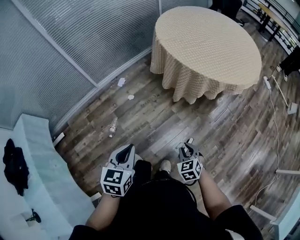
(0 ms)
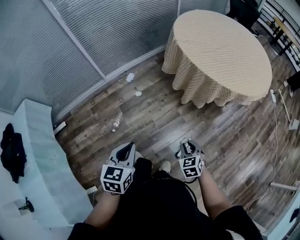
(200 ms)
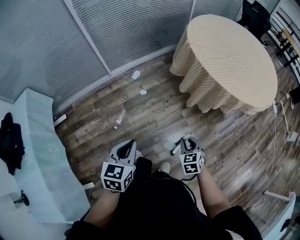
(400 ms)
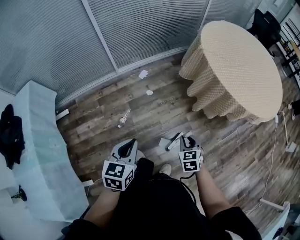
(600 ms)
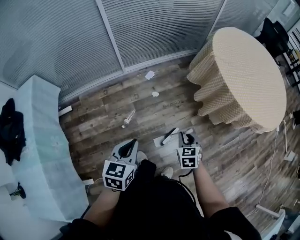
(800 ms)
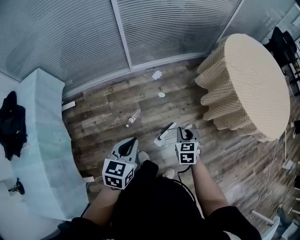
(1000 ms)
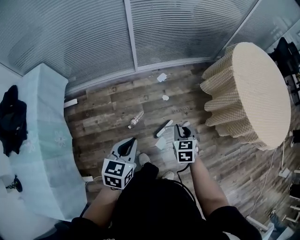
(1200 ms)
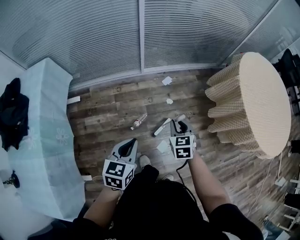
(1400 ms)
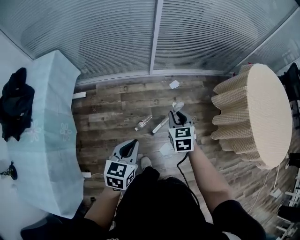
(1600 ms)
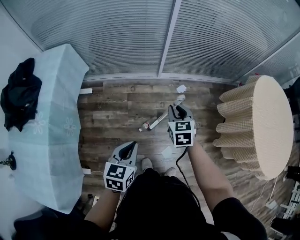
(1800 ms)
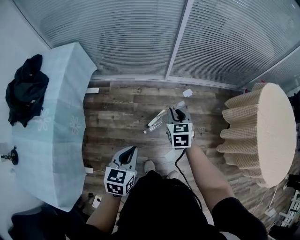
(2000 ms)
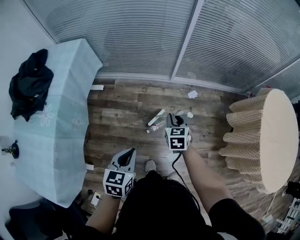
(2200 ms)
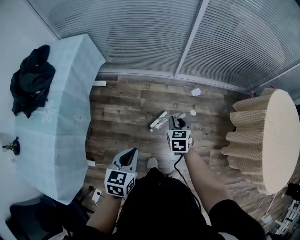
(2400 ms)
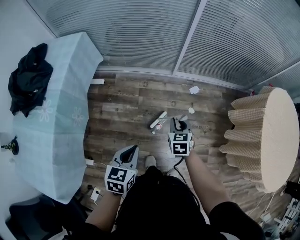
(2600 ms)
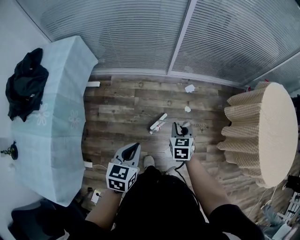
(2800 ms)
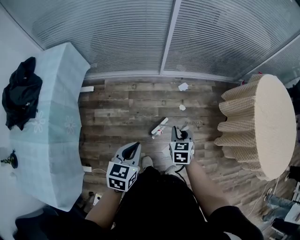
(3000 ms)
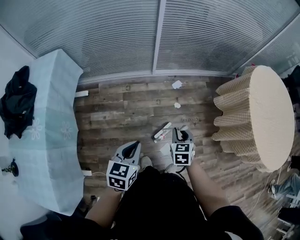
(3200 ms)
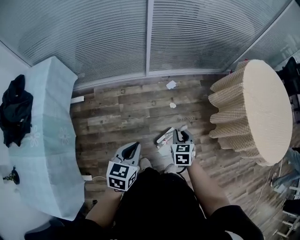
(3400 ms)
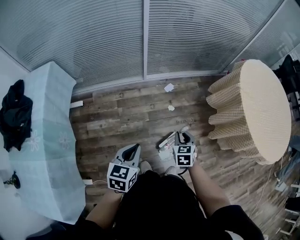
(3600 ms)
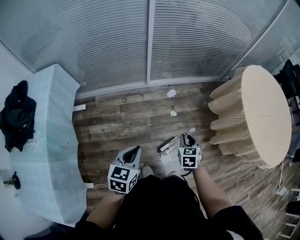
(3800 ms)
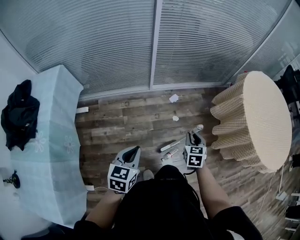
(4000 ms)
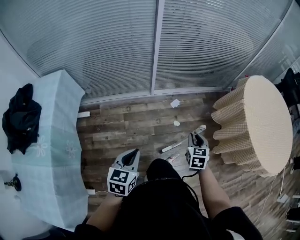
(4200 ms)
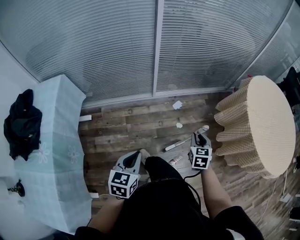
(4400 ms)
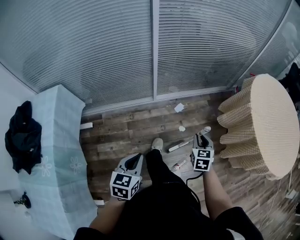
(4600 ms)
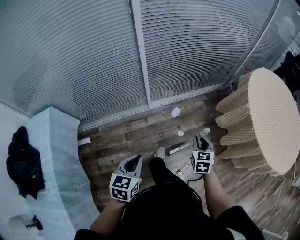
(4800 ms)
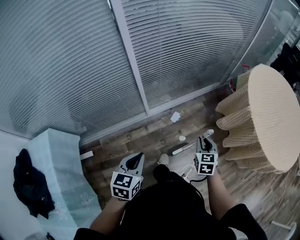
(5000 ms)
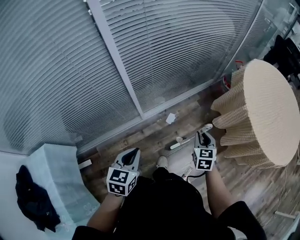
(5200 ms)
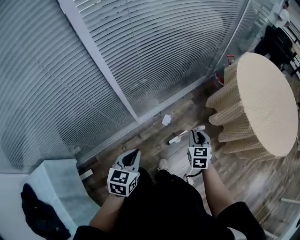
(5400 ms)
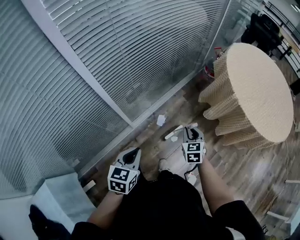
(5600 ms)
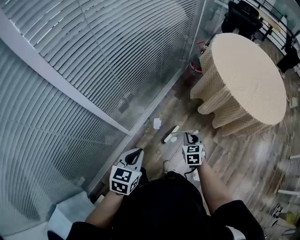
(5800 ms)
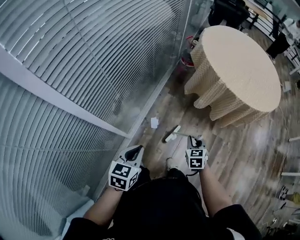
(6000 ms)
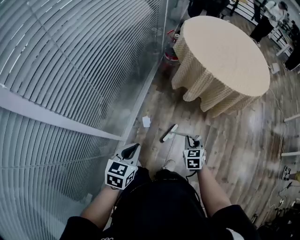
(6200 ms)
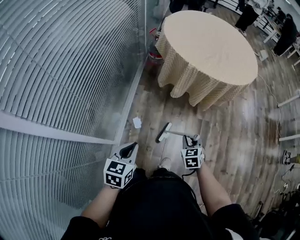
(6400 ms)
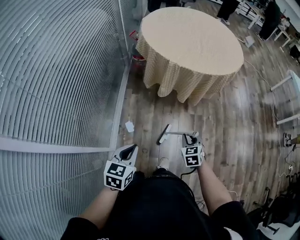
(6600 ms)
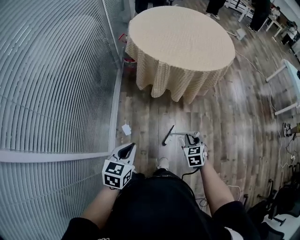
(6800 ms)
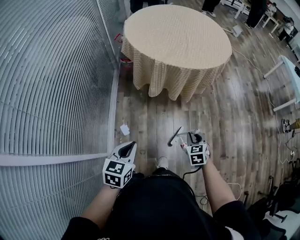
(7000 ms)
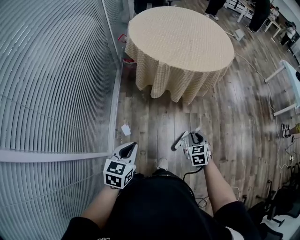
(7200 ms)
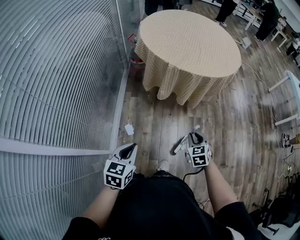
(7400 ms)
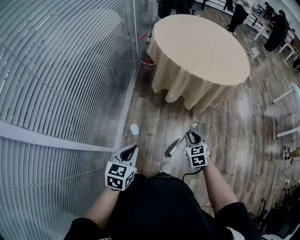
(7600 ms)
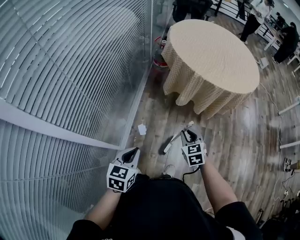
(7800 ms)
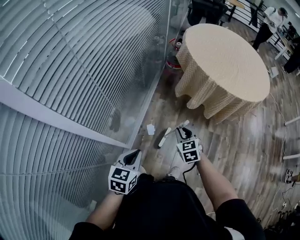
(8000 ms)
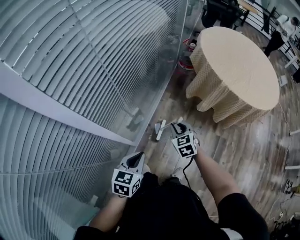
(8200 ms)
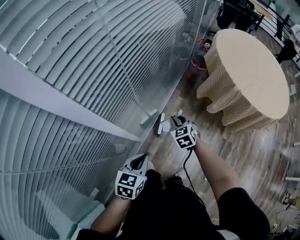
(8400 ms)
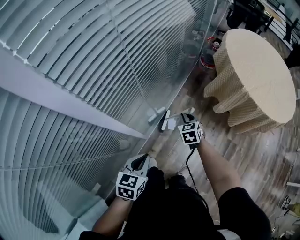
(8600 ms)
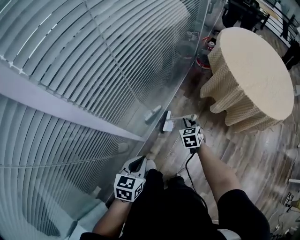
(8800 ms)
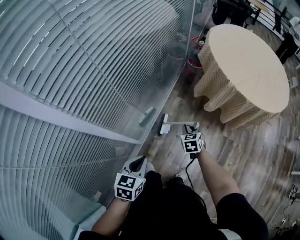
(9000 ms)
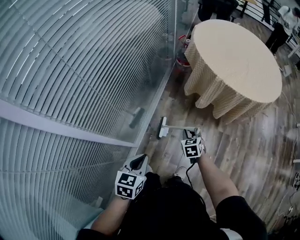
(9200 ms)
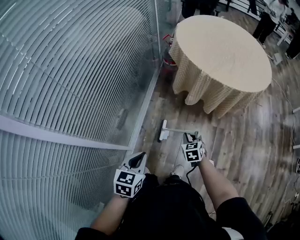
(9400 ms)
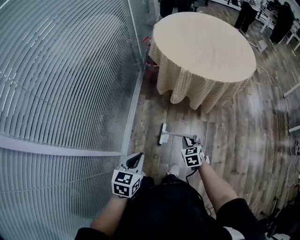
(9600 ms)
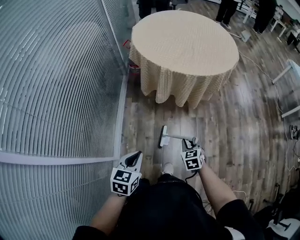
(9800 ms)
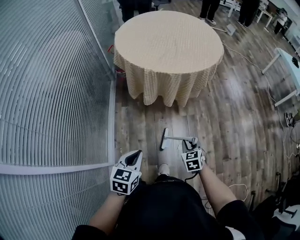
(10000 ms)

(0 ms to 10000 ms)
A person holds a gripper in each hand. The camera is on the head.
0 ms - 1400 ms: The left gripper moves to the left, about 35 cm, and swivels about 30 degrees; the right gripper is displaced to the left and forward by some 50 cm.
1400 ms - 2800 ms: The two grippers go some 10 cm to the left.
2800 ms - 4200 ms: The right gripper moves to the right, approximately 15 cm. Meanwhile the left gripper travels to the right and back again, approximately 10 cm each way.
4200 ms - 5800 ms: The left gripper moves approximately 50 cm, and turns by some 50 degrees. The right gripper shifts by some 30 cm, and changes its angle by some 40 degrees.
5800 ms - 7200 ms: The right gripper shifts by approximately 25 cm, and rotates some 30 degrees, while the left gripper changes place by roughly 15 cm, and rotates some 30 degrees.
7200 ms - 8600 ms: The left gripper shifts by about 25 cm, and swivels about 30 degrees. The right gripper changes place by roughly 50 cm, and swivels approximately 40 degrees.
8600 ms - 10000 ms: The right gripper ends up some 50 cm from where it was, and changes its angle by approximately 40 degrees, while the left gripper changes place by about 35 cm, and changes its angle by roughly 40 degrees.

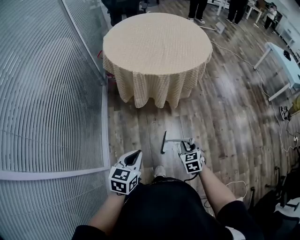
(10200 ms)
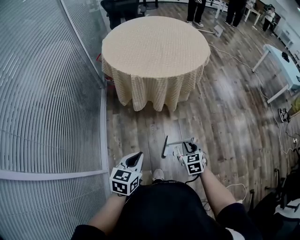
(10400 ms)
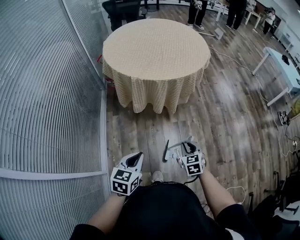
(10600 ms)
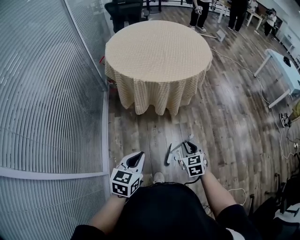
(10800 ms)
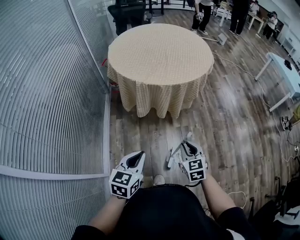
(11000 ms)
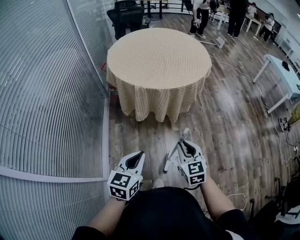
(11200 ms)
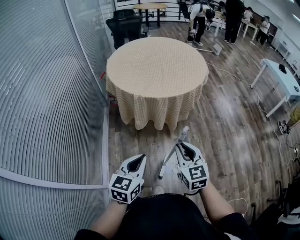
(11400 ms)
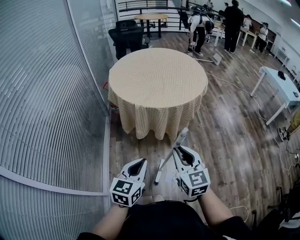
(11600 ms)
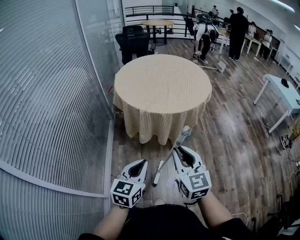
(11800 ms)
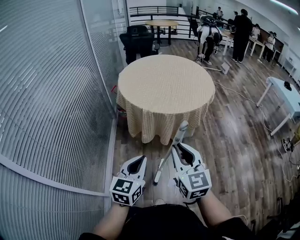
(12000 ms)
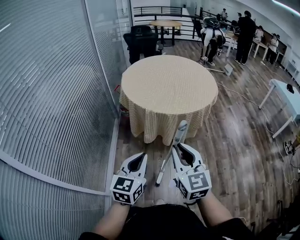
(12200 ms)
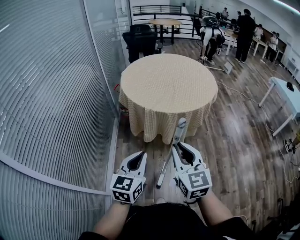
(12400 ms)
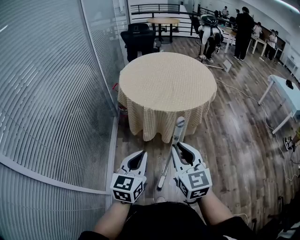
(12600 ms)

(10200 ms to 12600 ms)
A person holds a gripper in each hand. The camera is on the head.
10200 ms - 11400 ms: The left gripper heads upward, covering approximately 10 cm; the right gripper moves upward, approximately 20 cm, and turns by about 30 degrees.
11400 ms - 12600 ms: The right gripper shifts about 15 cm upward and to the left; the left gripper shifts roughly 5 cm upward.

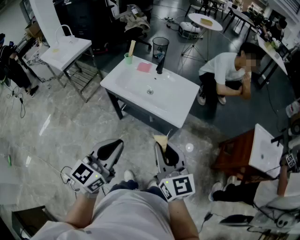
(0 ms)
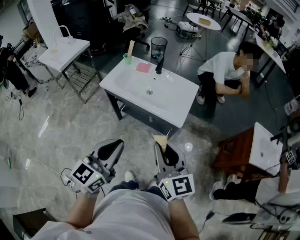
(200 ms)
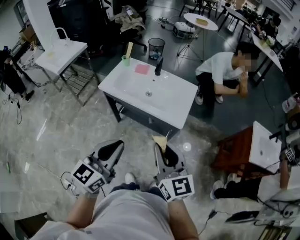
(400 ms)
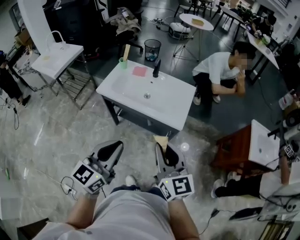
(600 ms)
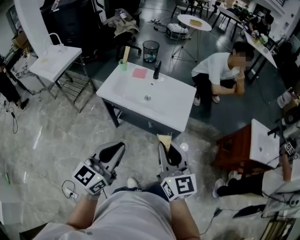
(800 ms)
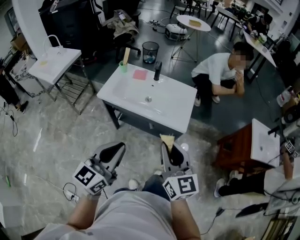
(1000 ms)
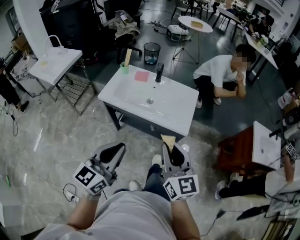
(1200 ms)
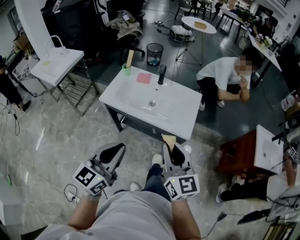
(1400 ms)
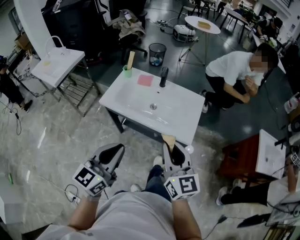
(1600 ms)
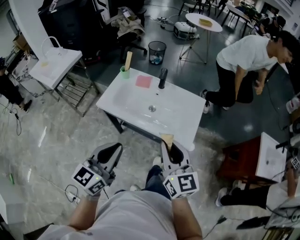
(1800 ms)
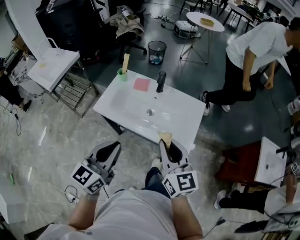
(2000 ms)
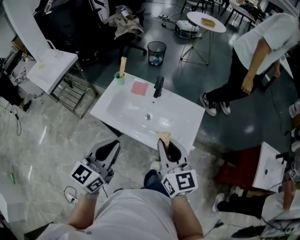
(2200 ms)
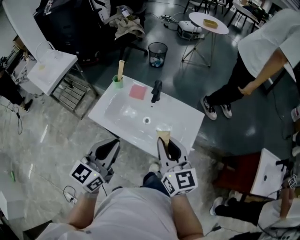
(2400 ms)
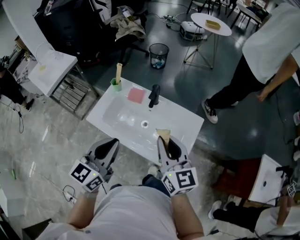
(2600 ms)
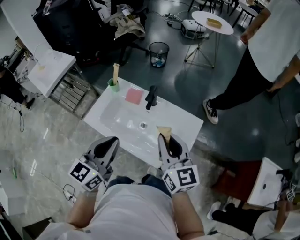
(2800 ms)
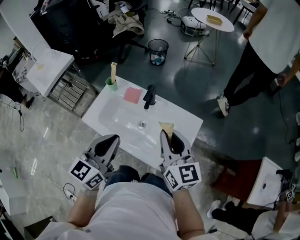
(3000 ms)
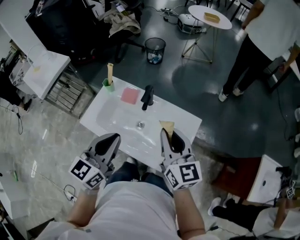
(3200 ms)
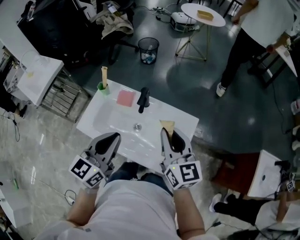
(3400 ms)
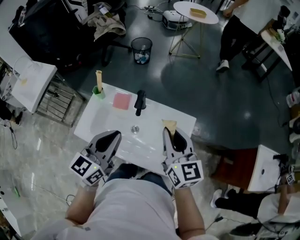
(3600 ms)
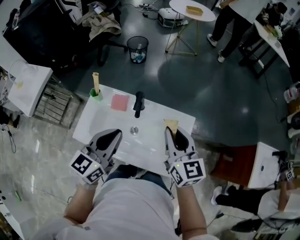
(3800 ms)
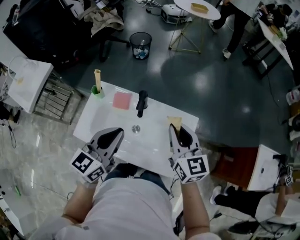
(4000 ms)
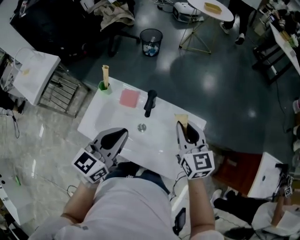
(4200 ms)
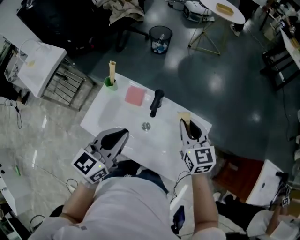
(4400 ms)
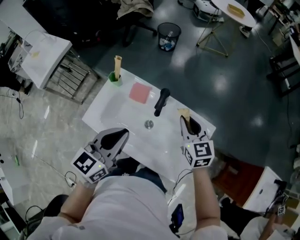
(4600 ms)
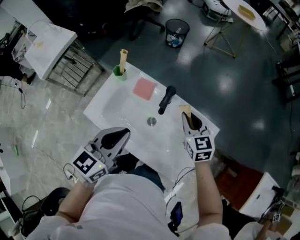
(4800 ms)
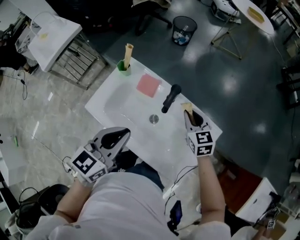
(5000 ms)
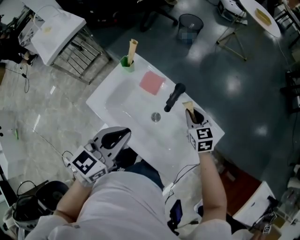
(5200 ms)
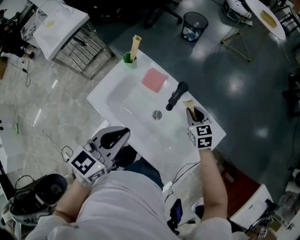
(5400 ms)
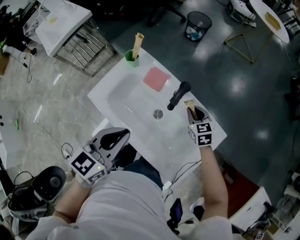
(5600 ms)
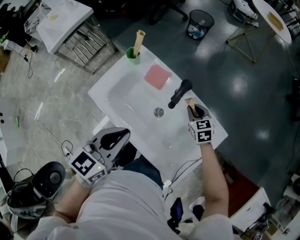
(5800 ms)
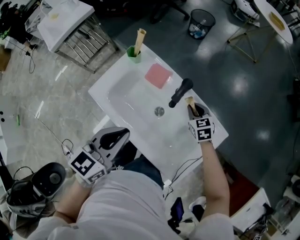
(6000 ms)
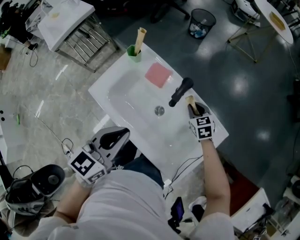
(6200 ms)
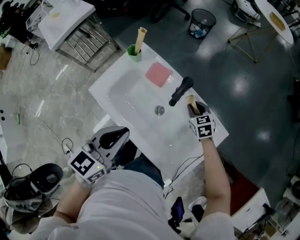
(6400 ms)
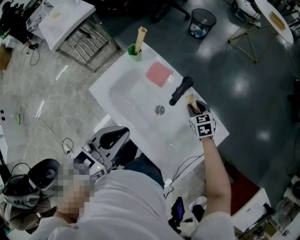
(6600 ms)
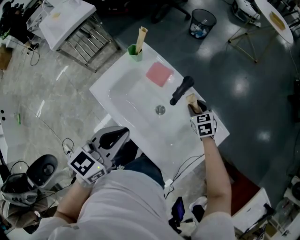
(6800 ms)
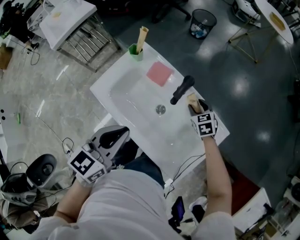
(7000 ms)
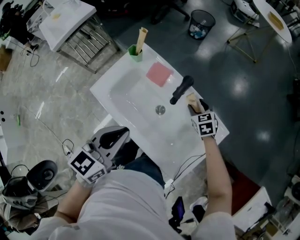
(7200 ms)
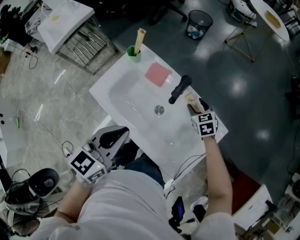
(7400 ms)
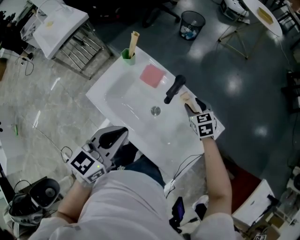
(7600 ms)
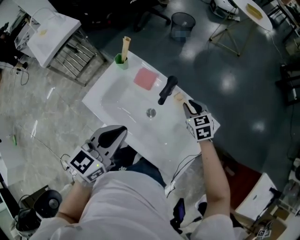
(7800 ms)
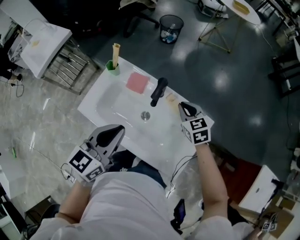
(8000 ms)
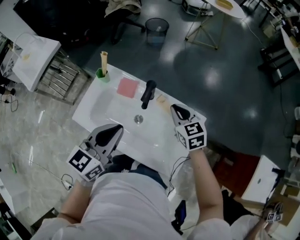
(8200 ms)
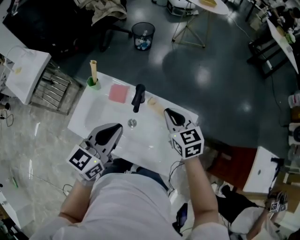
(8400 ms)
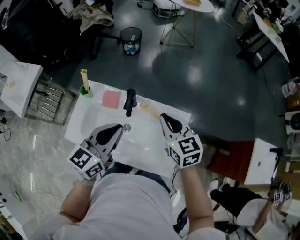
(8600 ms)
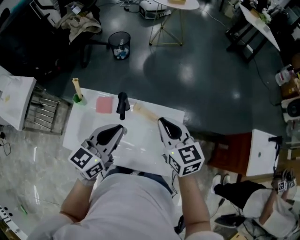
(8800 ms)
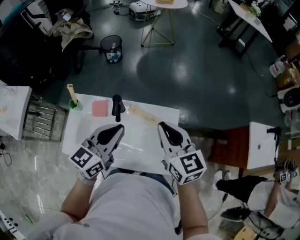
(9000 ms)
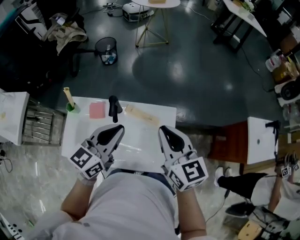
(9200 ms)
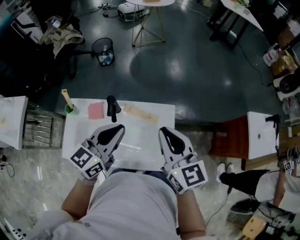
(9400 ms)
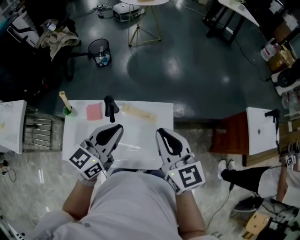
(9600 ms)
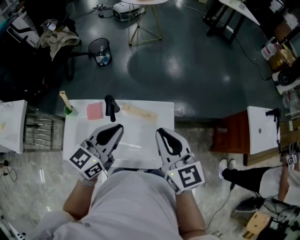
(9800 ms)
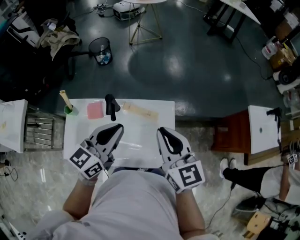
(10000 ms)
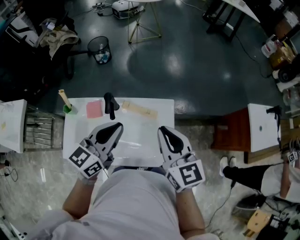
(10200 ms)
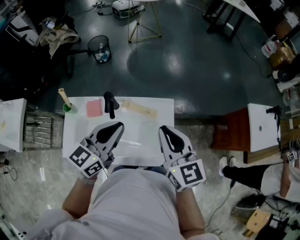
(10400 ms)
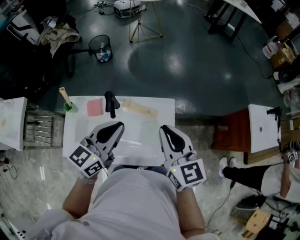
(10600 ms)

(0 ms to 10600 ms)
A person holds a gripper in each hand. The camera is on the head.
0 ms - 1600 ms: Both grippers travel together forward and to the left, approximately 20 cm.
1600 ms - 3000 ms: Both grippers move forward, about 35 cm.
3000 ms - 4600 ms: The right gripper goes approximately 25 cm forward and downward, and changes its angle by about 20 degrees. Meanwhile the left gripper moves forward, downward and to the left, about 15 cm.
4600 ms - 6000 ms: The left gripper goes approximately 5 cm downward; the right gripper is displaced downward by some 20 cm, and changes its angle by about 30 degrees.
6000 ms - 7600 ms: The right gripper opens.
7600 ms - 9000 ms: The left gripper changes place by some 15 cm, and rotates about 30 degrees; the right gripper is displaced upward by about 30 cm, angles its fingers upward, by some 30 degrees, and closes up.
9000 ms - 10600 ms: The right gripper shifts by approximately 5 cm.
